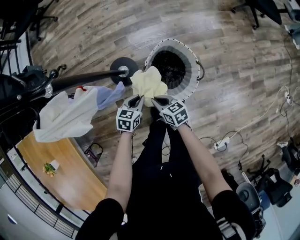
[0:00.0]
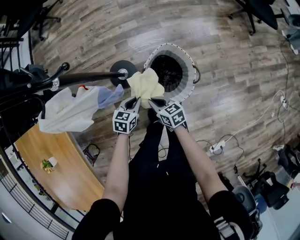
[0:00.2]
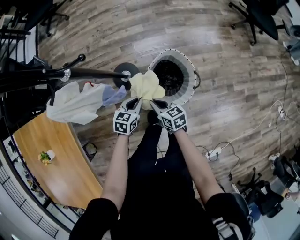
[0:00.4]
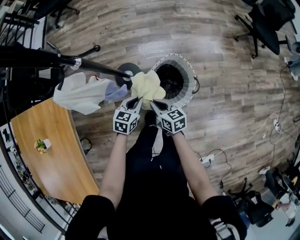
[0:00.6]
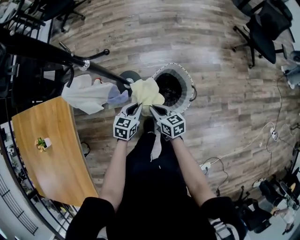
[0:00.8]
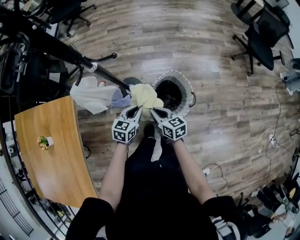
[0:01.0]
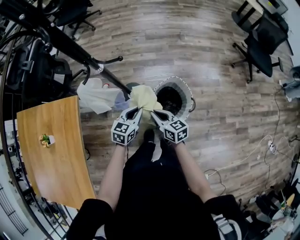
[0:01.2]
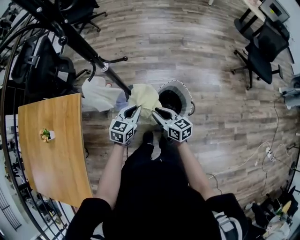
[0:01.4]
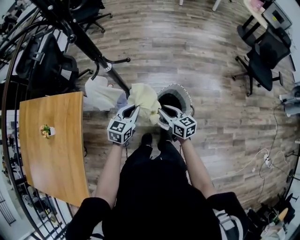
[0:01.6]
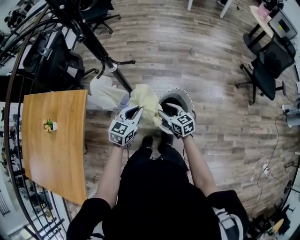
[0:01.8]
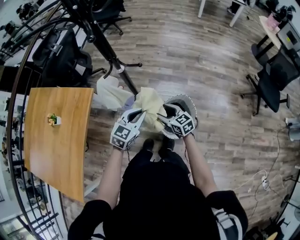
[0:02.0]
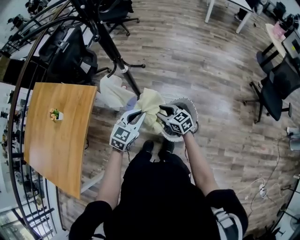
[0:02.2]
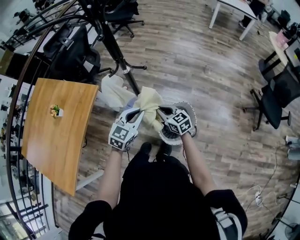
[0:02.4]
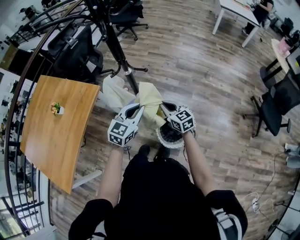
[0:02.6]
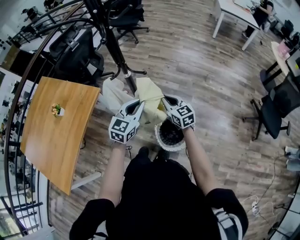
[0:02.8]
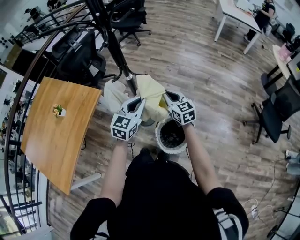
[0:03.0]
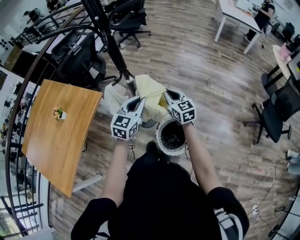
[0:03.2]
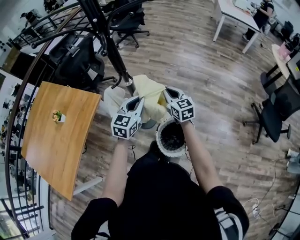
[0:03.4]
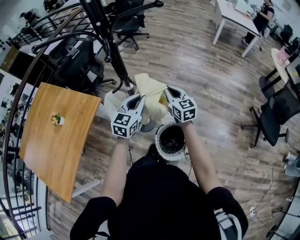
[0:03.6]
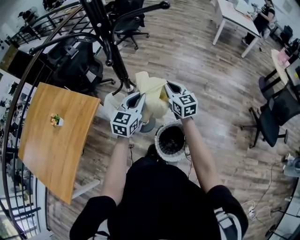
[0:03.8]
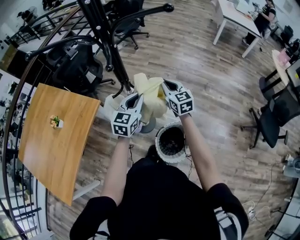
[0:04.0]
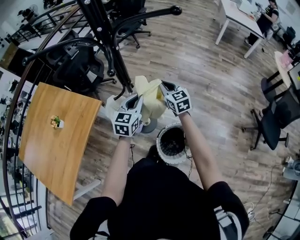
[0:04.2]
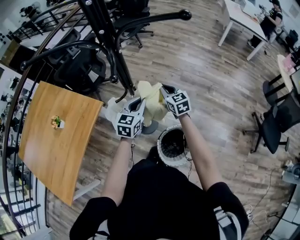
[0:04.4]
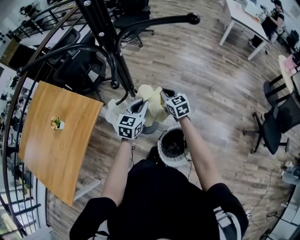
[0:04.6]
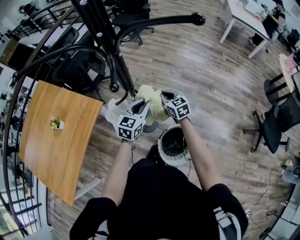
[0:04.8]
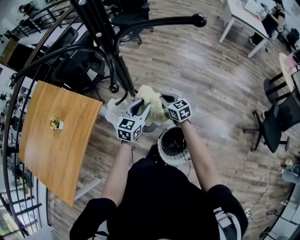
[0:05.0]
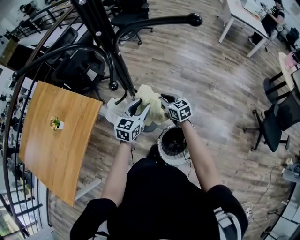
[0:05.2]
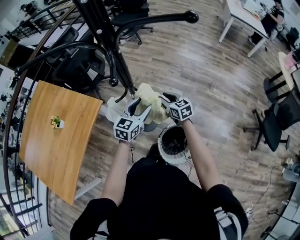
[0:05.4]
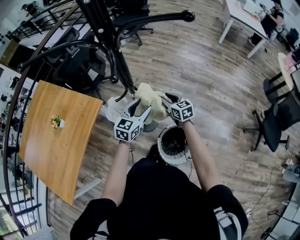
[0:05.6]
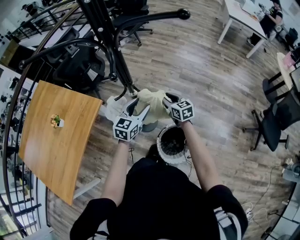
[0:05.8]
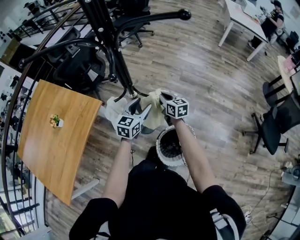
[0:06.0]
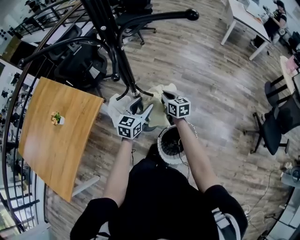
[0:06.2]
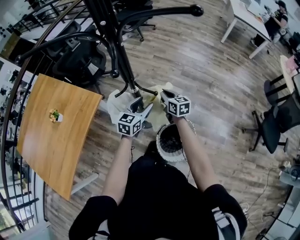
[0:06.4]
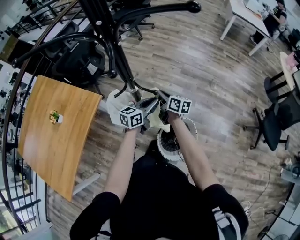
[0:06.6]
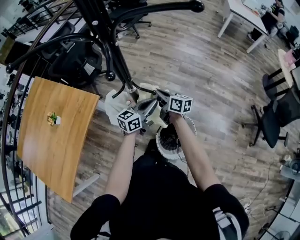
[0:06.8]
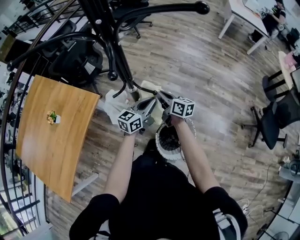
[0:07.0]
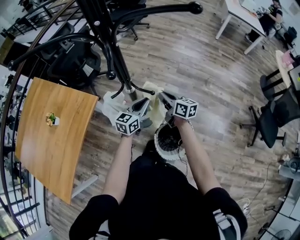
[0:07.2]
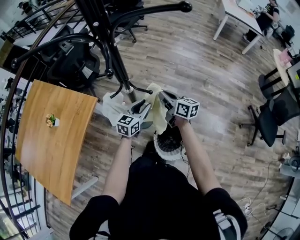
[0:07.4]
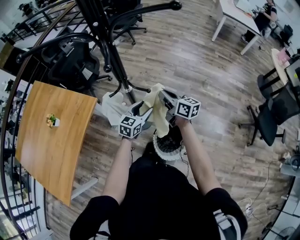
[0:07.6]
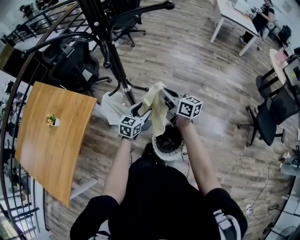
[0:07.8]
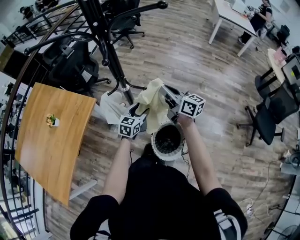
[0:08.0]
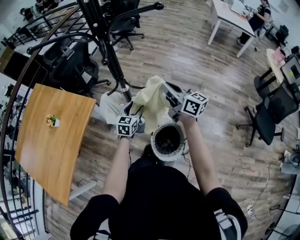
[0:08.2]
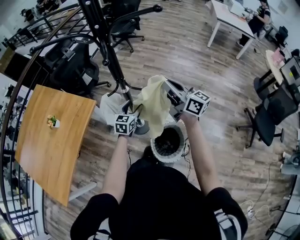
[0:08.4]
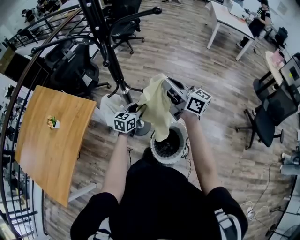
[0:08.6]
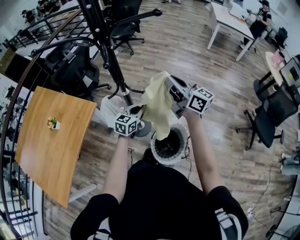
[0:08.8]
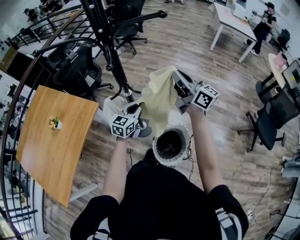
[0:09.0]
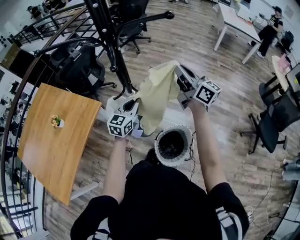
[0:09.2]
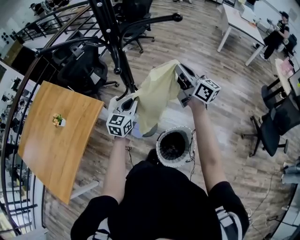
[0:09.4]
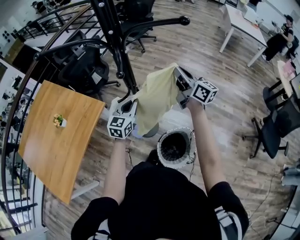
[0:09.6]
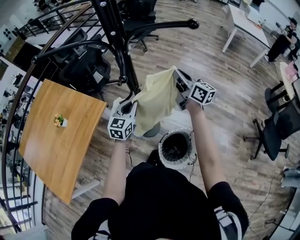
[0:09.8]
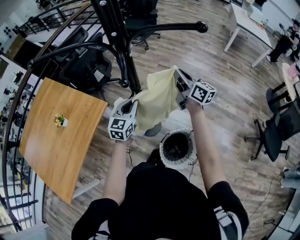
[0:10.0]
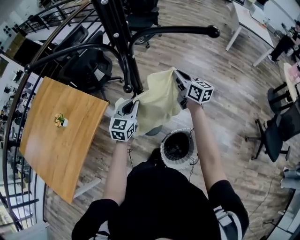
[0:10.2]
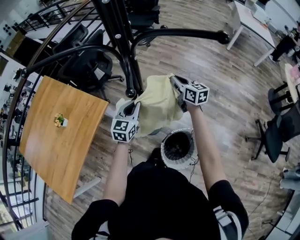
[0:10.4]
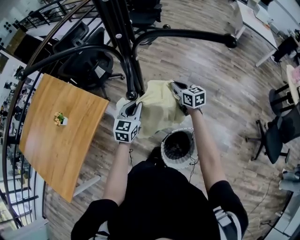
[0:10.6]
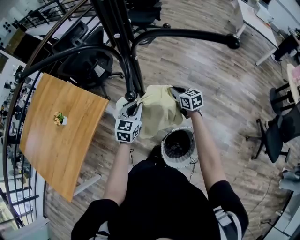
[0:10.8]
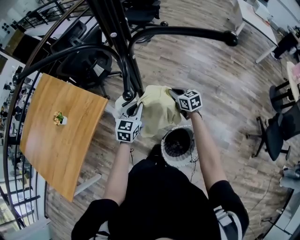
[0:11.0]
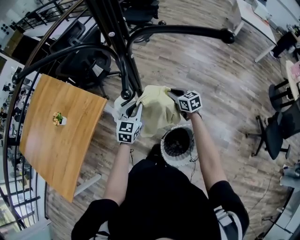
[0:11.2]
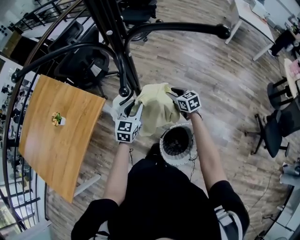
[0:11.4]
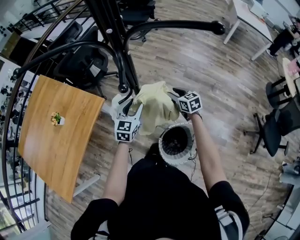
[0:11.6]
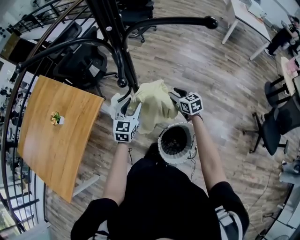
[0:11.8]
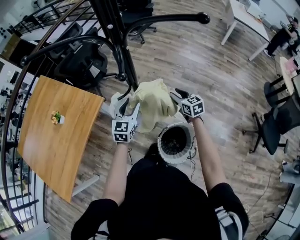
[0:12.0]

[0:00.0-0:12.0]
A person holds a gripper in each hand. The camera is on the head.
0:00.0 to 0:01.6: The grippers both shift upward by about 30 cm. The right gripper turns by about 20 degrees, and opens up, while the left gripper changes its angle by about 30 degrees.
0:01.6 to 0:03.0: The left gripper goes approximately 15 cm upward, and rotates about 30 degrees. The right gripper goes approximately 20 cm forward and upward, rotates some 30 degrees, and closes.
0:03.0 to 0:04.4: Both grippers travel together forward, approximately 15 cm.
0:04.4 to 0:06.0: The left gripper opens. The right gripper is displaced downward by about 5 cm, changes its angle by roughly 20 degrees, and opens, then closes once more.
0:06.0 to 0:07.6: The right gripper travels upward by roughly 10 cm, and rotates about 20 degrees; the left gripper is displaced downward by roughly 5 cm, and closes and opens again.
0:07.6 to 0:09.0: The right gripper moves upward, approximately 20 cm, and turns by some 20 degrees, while the left gripper shifts roughly 10 cm upward, and closes.
0:09.0 to 0:10.4: The left gripper shifts approximately 10 cm to the left and forward, while the right gripper goes about 25 cm downward and forward, and rotates roughly 30 degrees.
0:10.4 to 0:12.0: The left gripper opens its fingers, while the right gripper heads downward and backward, covering about 15 cm, turns by about 20 degrees, and opens up.

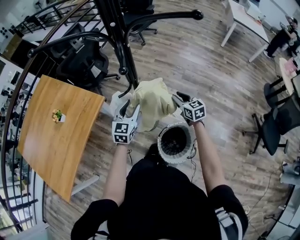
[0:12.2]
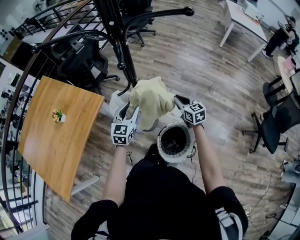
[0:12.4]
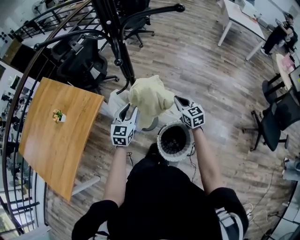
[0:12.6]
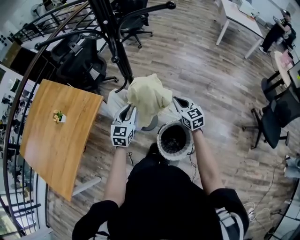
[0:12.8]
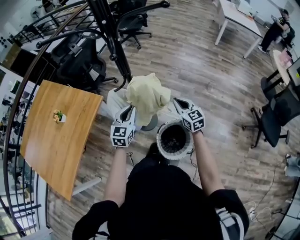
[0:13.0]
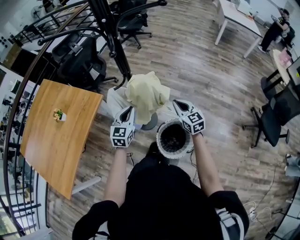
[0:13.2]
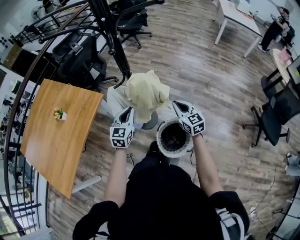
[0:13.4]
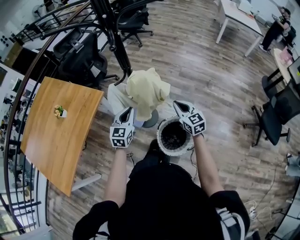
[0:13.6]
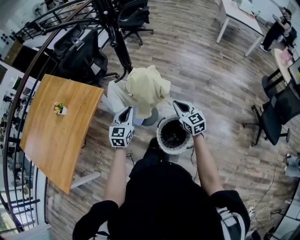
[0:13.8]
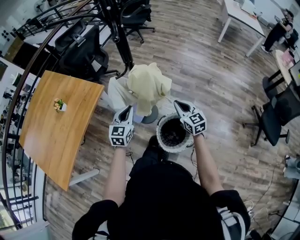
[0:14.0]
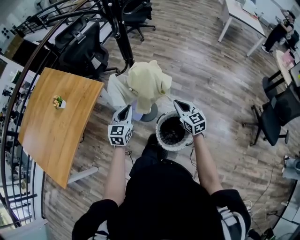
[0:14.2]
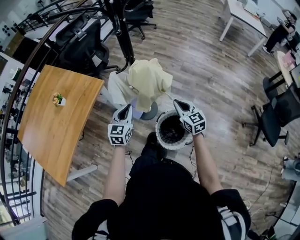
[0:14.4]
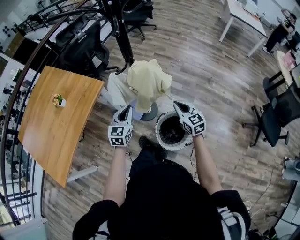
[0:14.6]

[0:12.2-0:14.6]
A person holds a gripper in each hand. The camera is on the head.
0:12.2 to 0:13.4: The left gripper moves backward, roughly 10 cm, and closes its fingers. Meanwhile the right gripper shifts about 15 cm backward, and closes its fingers.
0:13.4 to 0:14.6: The left gripper shifts by about 5 cm; the right gripper shifts by about 5 cm.

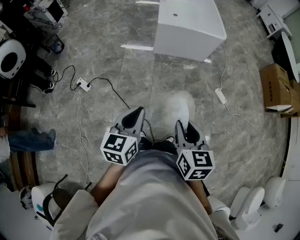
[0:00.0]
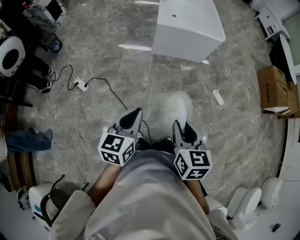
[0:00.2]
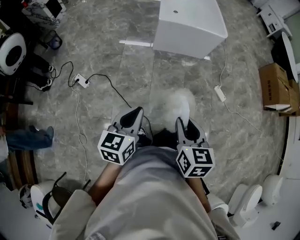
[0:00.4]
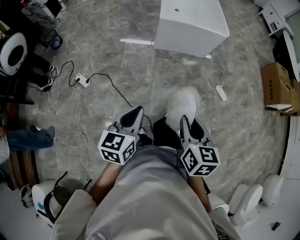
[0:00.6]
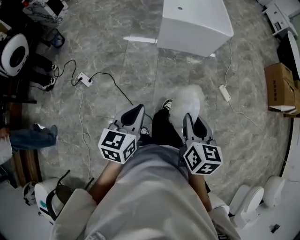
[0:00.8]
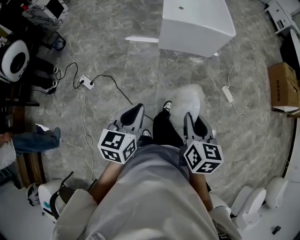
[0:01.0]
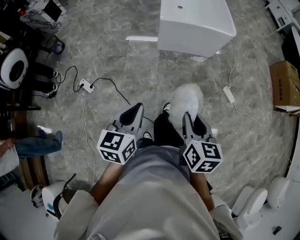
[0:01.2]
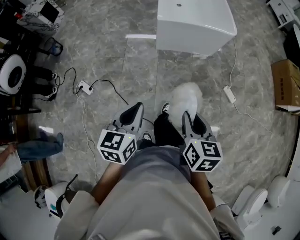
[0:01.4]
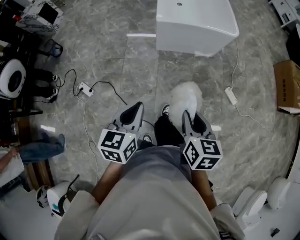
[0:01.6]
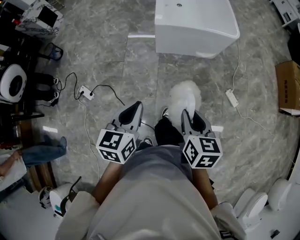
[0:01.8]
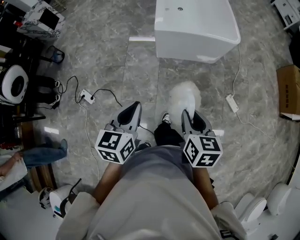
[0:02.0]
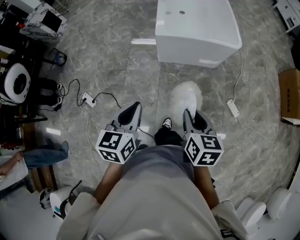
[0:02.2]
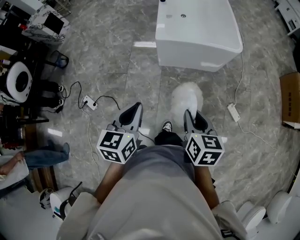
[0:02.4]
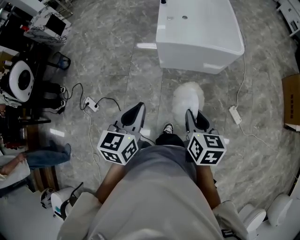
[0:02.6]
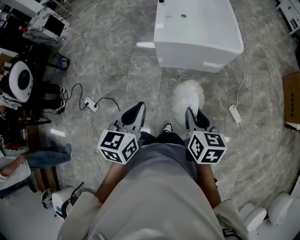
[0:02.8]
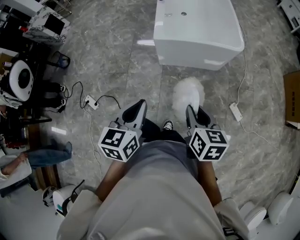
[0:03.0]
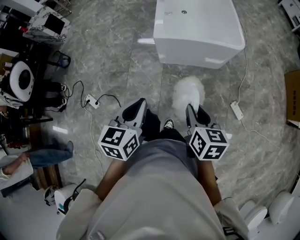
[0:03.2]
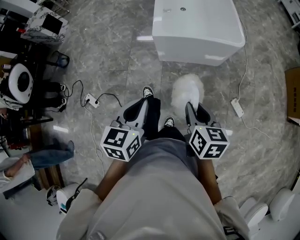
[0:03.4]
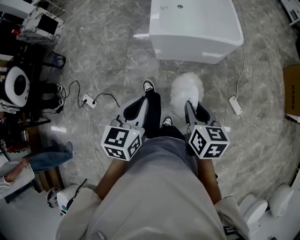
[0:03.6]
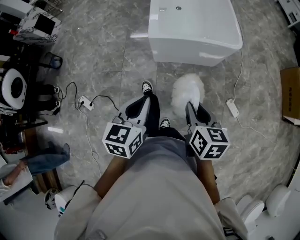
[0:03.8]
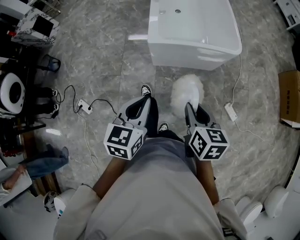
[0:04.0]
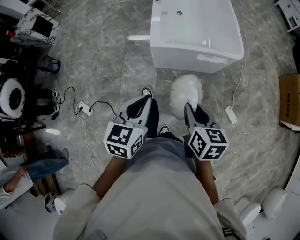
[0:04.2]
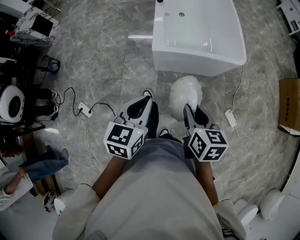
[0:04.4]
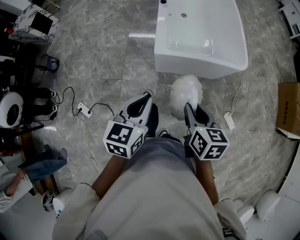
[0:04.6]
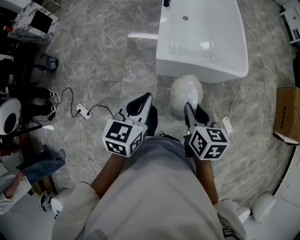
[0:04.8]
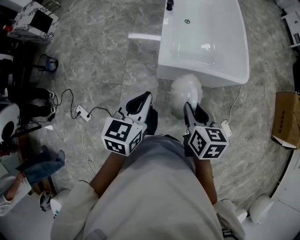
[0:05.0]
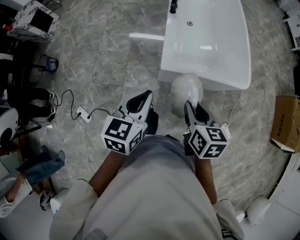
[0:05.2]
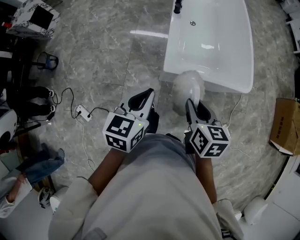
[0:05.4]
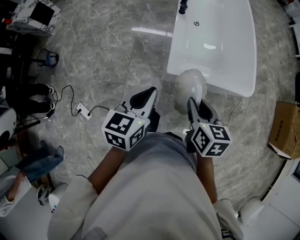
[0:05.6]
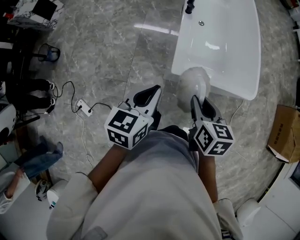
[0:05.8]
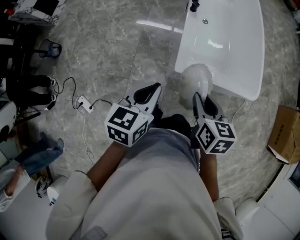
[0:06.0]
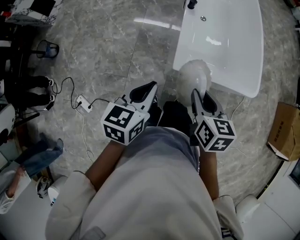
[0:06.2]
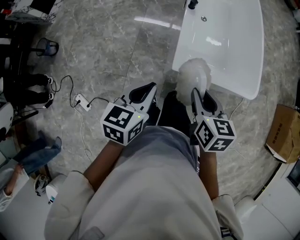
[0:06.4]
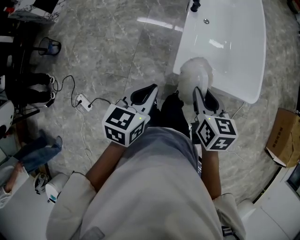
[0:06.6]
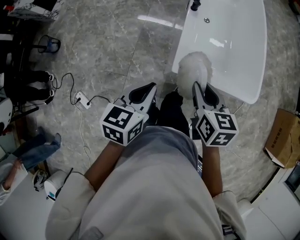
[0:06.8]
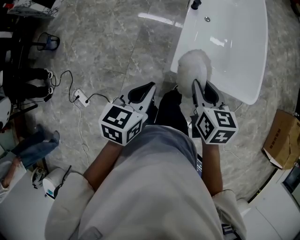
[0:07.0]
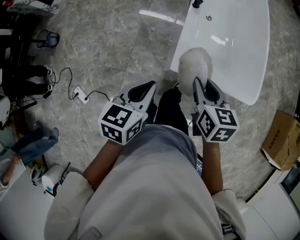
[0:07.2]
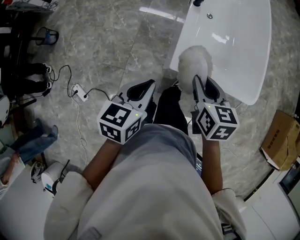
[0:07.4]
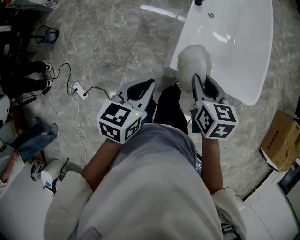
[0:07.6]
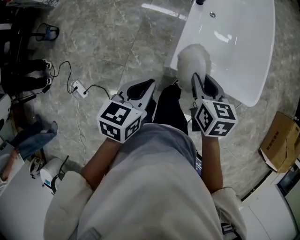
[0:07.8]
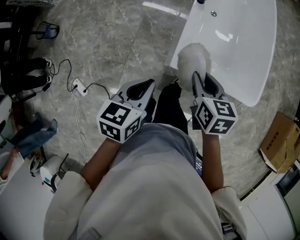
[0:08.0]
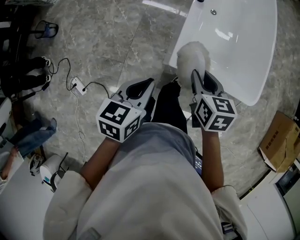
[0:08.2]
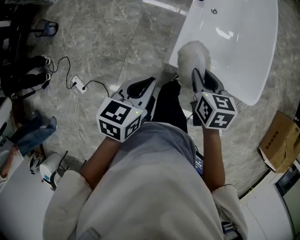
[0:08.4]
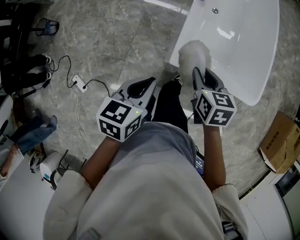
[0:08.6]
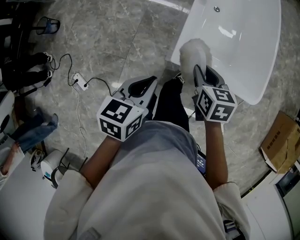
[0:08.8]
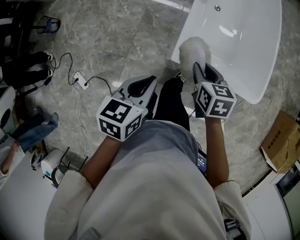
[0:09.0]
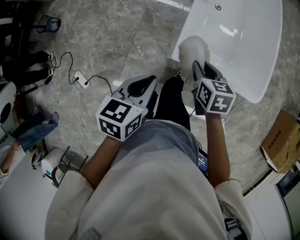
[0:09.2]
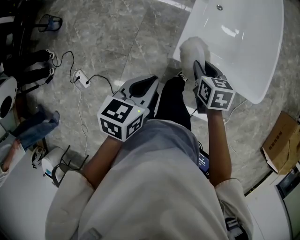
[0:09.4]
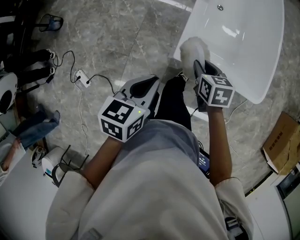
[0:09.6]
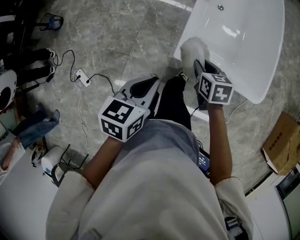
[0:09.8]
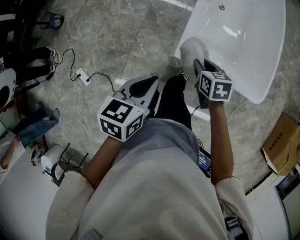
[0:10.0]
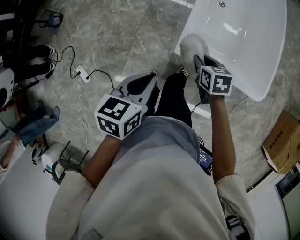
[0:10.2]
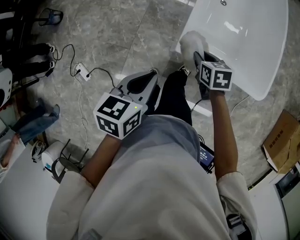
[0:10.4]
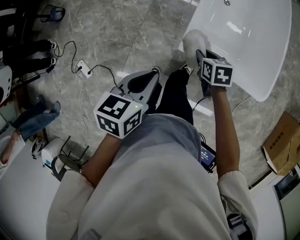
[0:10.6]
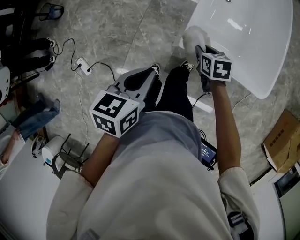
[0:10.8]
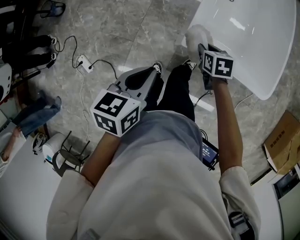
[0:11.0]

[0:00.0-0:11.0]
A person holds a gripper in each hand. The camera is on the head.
0:00.0 to 0:01.6: Both grippers travel together forward, roughly 20 cm.
0:01.6 to 0:03.2: Both grippers travel together forward and to the right, some 20 cm.
0:03.2 to 0:04.8: The two grippers go roughly 25 cm forward.
0:04.8 to 0:06.2: Both grippers move forward and to the left, roughly 20 cm.
0:06.2 to 0:07.8: The left gripper moves about 5 cm, while the right gripper travels forward by approximately 10 cm.
0:07.8 to 0:09.4: The right gripper goes some 10 cm downward.
0:09.4 to 0:11.0: The right gripper moves downward, some 10 cm.
